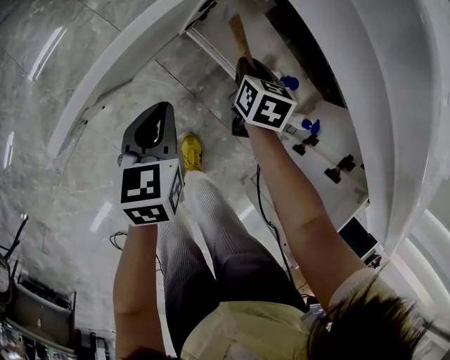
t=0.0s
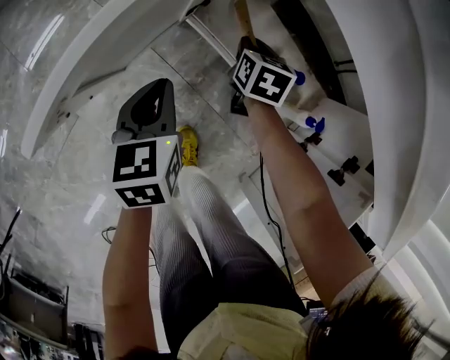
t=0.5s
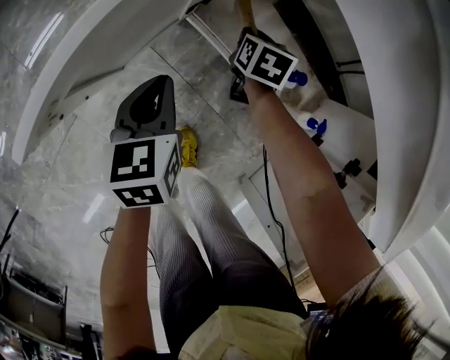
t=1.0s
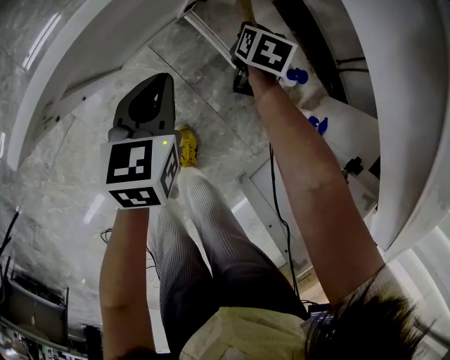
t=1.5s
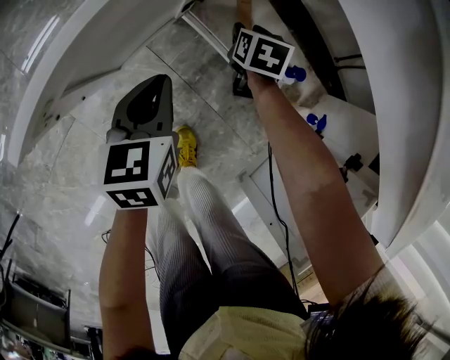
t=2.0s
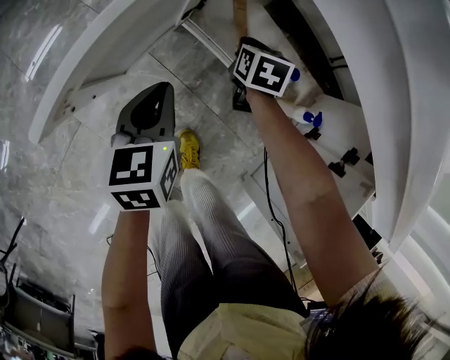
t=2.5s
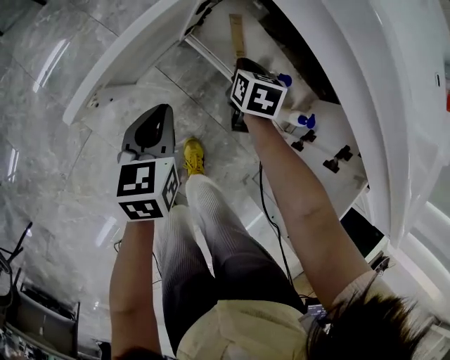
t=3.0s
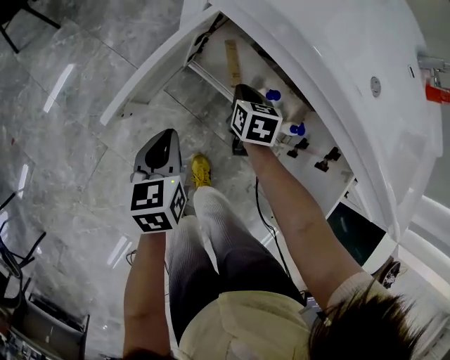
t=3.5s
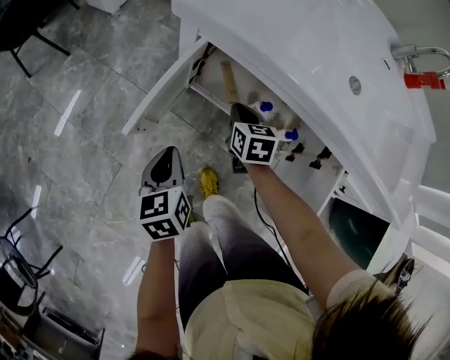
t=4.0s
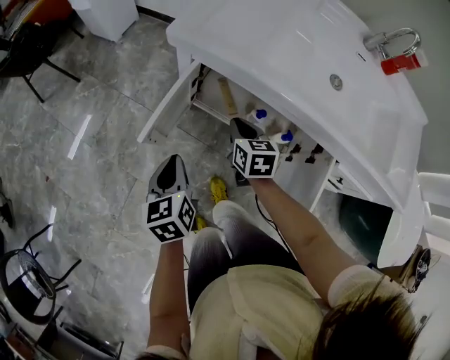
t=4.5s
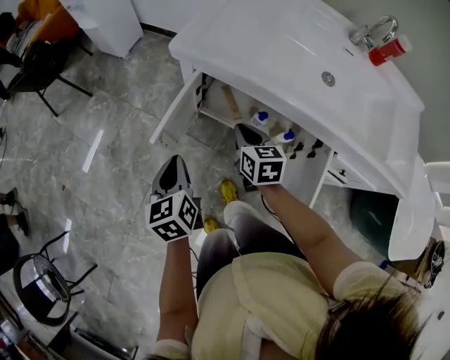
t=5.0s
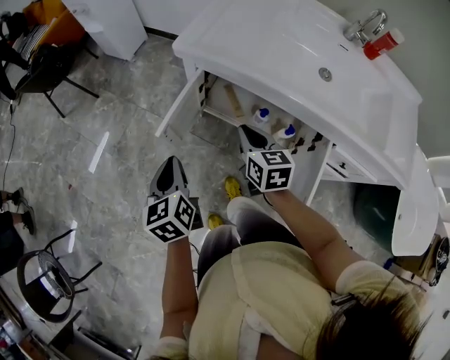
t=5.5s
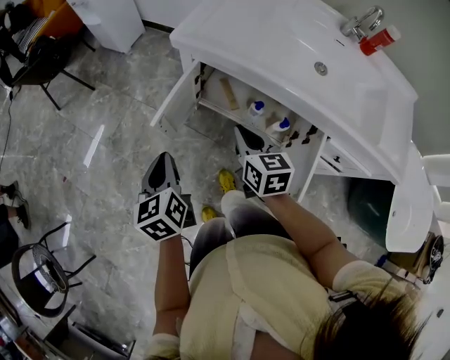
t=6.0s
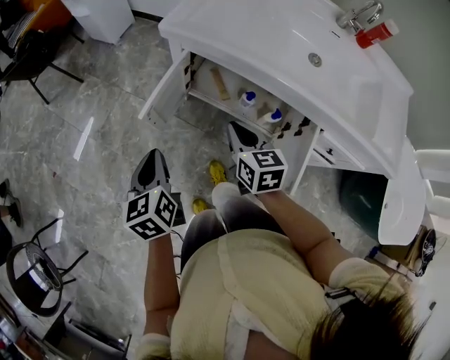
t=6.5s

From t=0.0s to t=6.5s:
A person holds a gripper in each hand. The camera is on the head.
From t=0.0s to t=2.0s: The right gripper is displaced downward and forward by about 10 cm, and opens.
From t=2.0s to t=4.5s: The right gripper shifts about 35 cm upward and backward, and closes its fingers. The left gripper moves upward, about 25 cm.
From t=4.5s to t=6.5s: The grippers both shift upward and backward by approximately 15 cm.

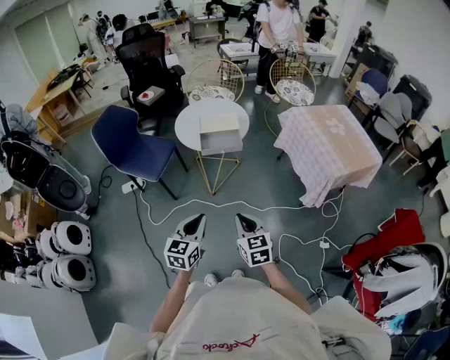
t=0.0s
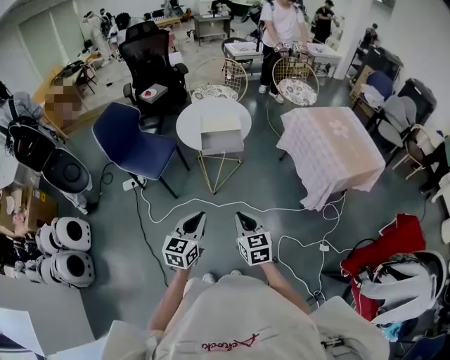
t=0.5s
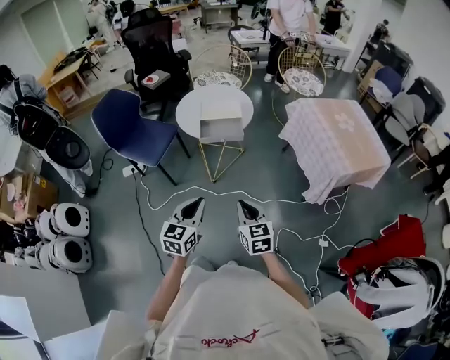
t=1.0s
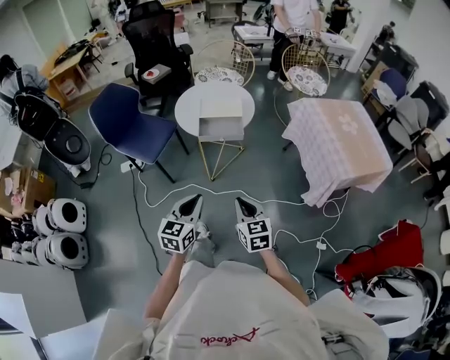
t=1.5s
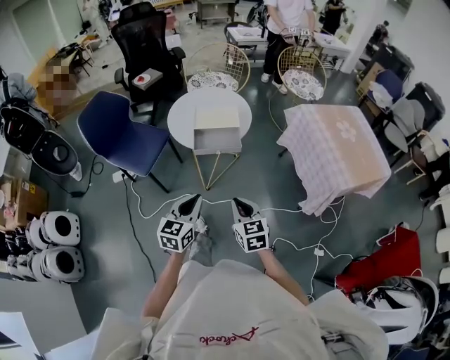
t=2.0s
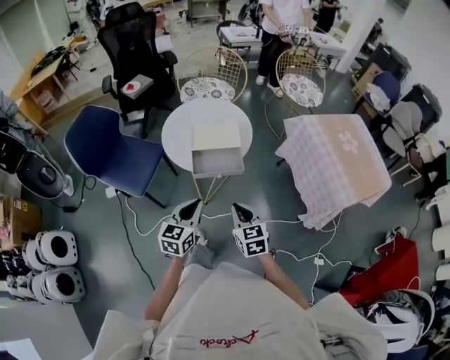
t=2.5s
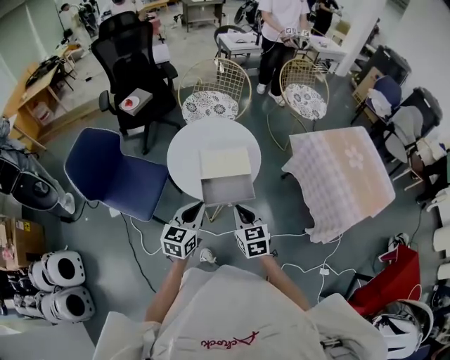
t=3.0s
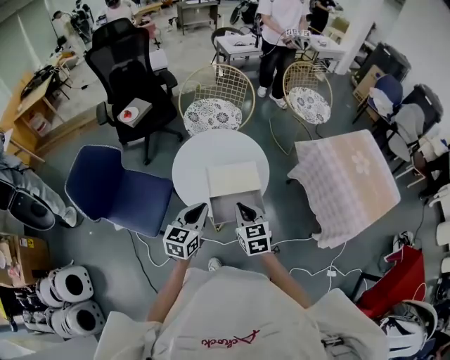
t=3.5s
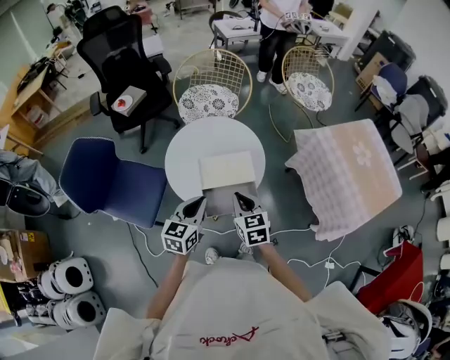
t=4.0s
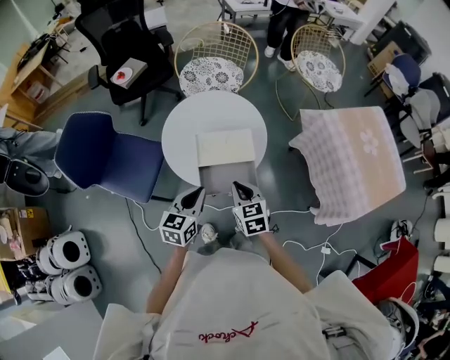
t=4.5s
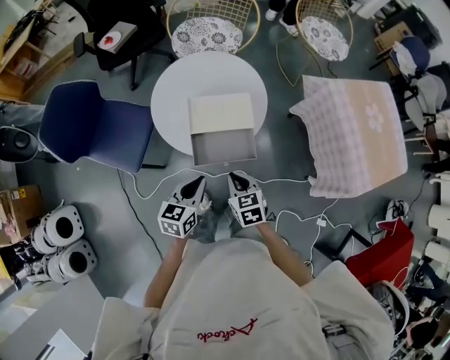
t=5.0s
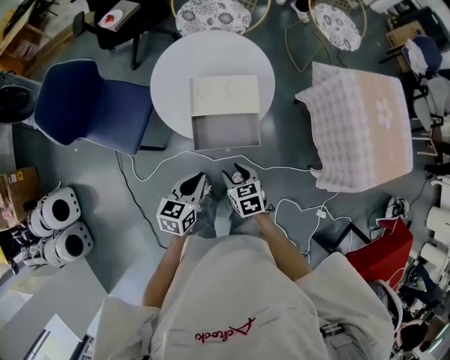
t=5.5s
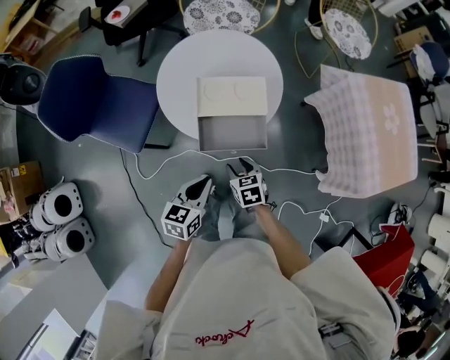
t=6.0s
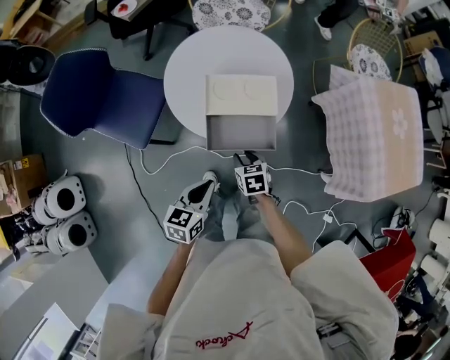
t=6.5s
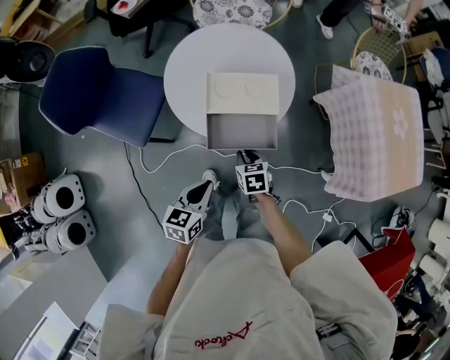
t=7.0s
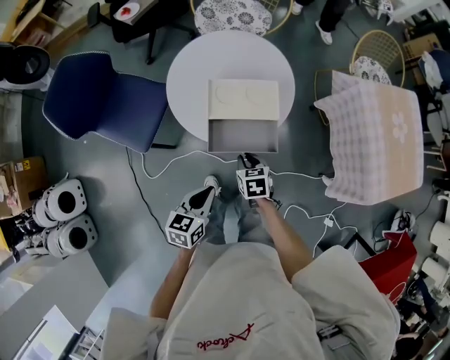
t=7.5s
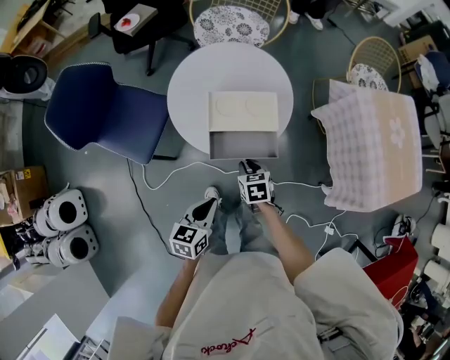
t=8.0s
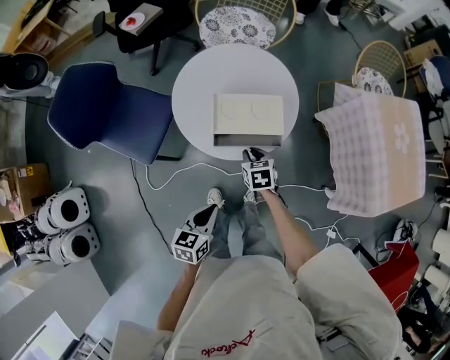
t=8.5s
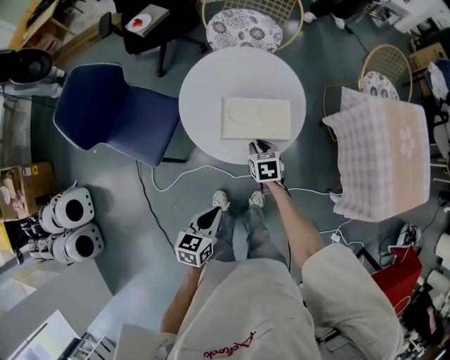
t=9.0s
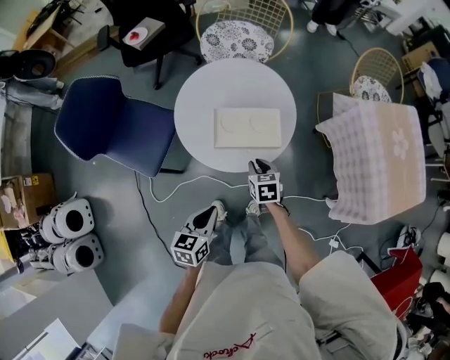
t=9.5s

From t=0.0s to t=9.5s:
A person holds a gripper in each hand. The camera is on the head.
From t=0.0s to t=2.0s: The two grippers go some 15 cm forward.
From t=2.0s to t=4.0s: The grippers both shift forward by some 35 cm.
From t=4.0s to t=5.5s: The right gripper travels downward and backward by approximately 20 cm, changes its angle by approximately 20 degrees, and opens up; the left gripper is displaced backward and downward by some 15 cm.
From t=5.5s to t=7.5s: The right gripper moves forward, some 5 cm, and closes its fingers.
From t=7.5s to t=9.5s: The right gripper goes about 10 cm forward.

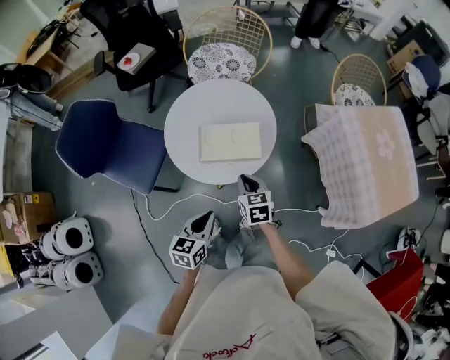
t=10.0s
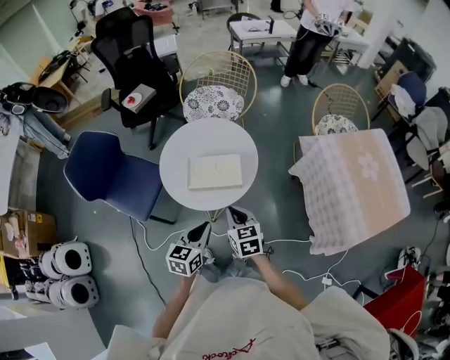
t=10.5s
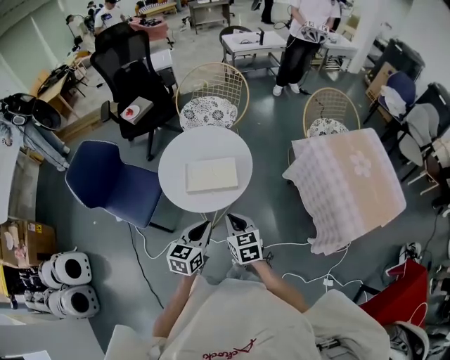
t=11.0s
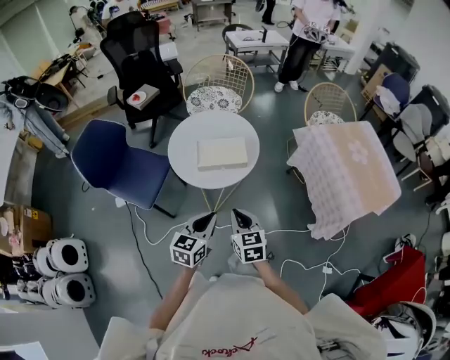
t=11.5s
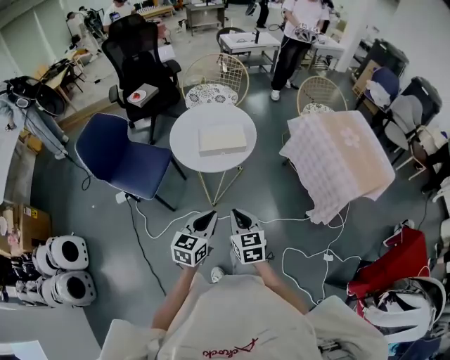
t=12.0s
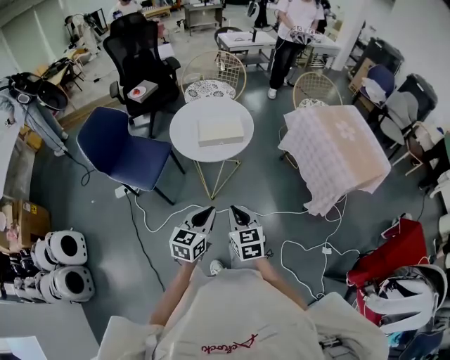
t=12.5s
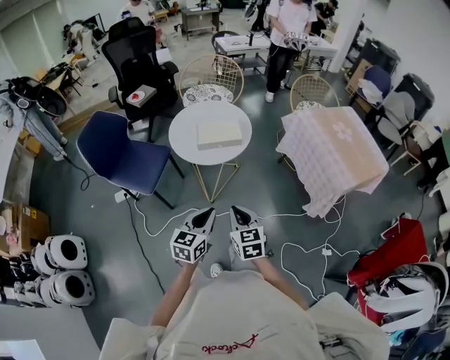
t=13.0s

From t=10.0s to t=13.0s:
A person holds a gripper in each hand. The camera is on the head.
From t=10.0s to t=11.5s: The right gripper heads backward and upward, covering roughly 20 cm, while the left gripper travels upward and backward by some 10 cm.
From t=11.5s to t=13.0s: The two grippers go roughly 15 cm backward.

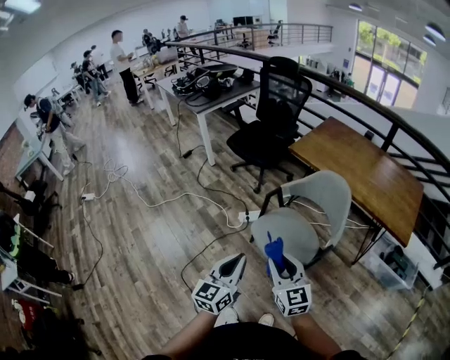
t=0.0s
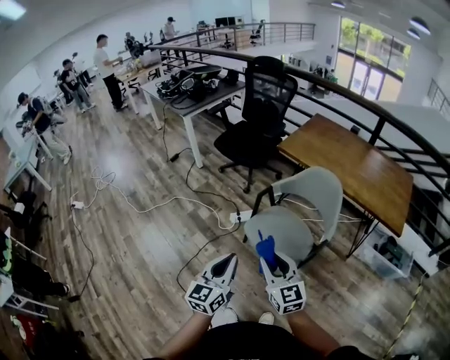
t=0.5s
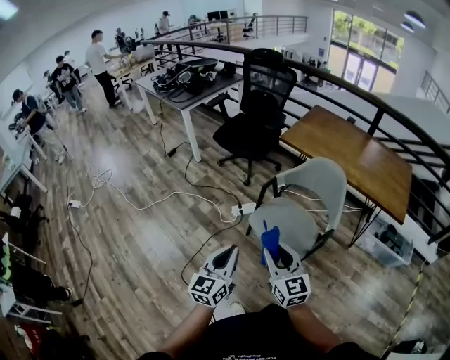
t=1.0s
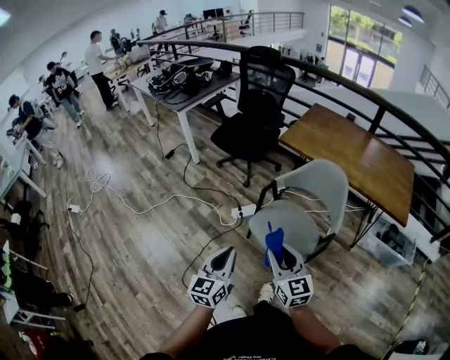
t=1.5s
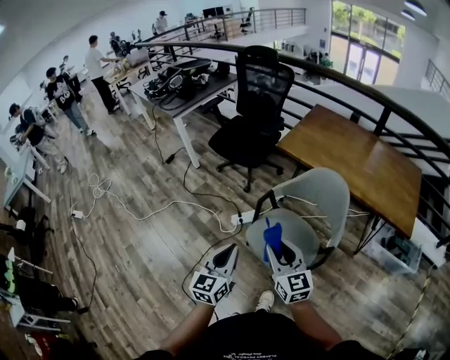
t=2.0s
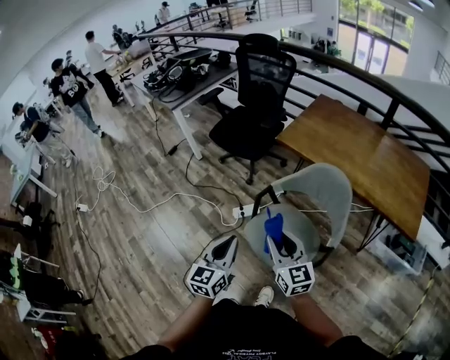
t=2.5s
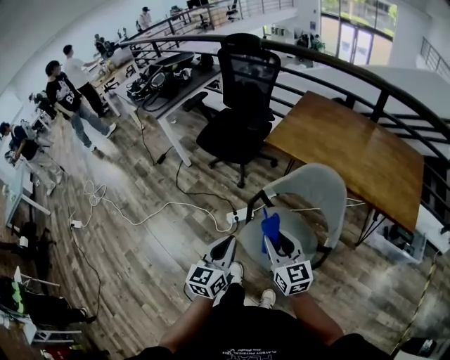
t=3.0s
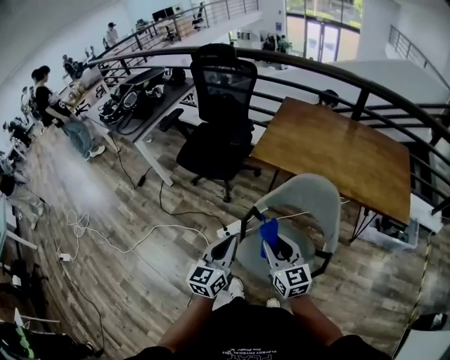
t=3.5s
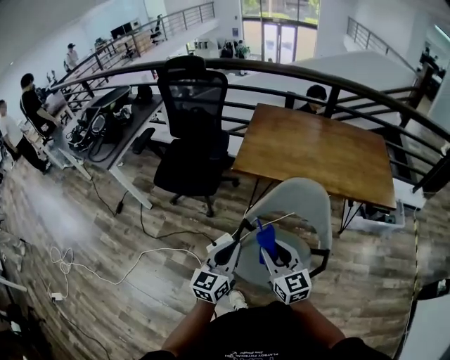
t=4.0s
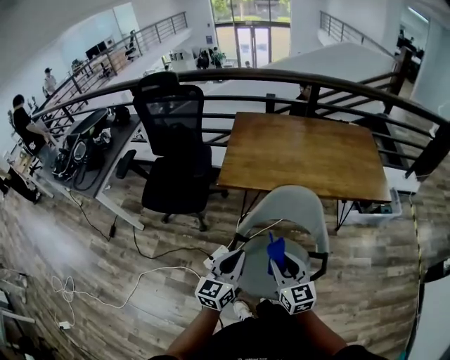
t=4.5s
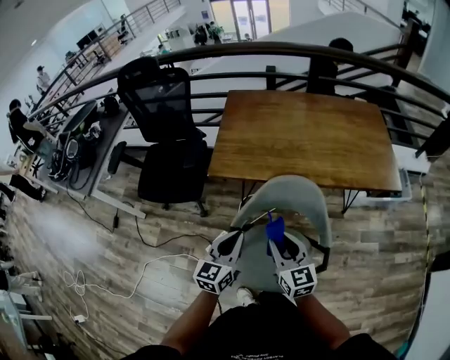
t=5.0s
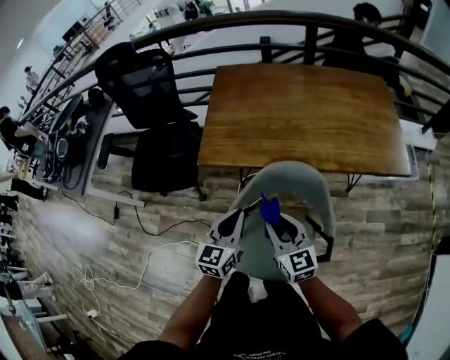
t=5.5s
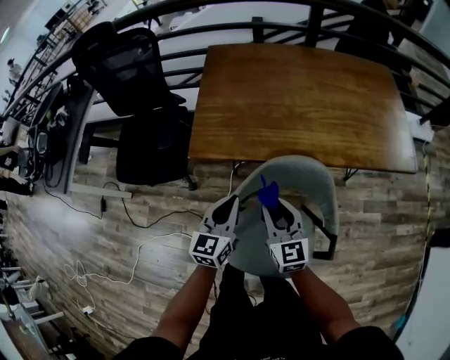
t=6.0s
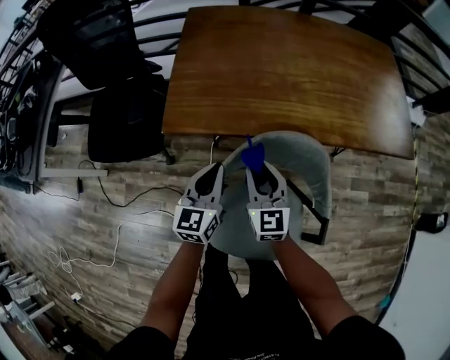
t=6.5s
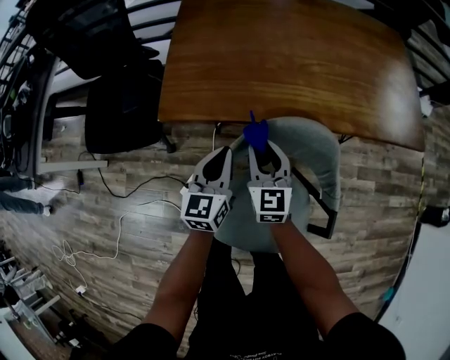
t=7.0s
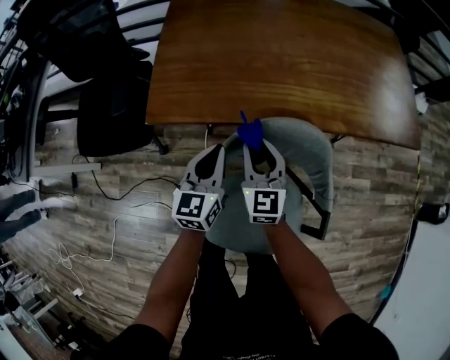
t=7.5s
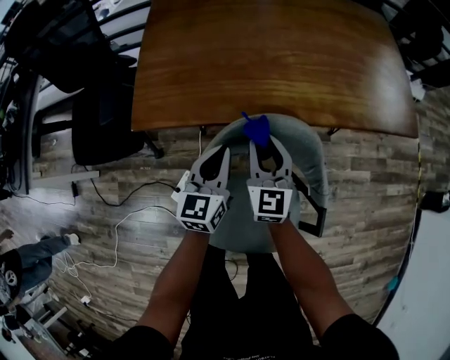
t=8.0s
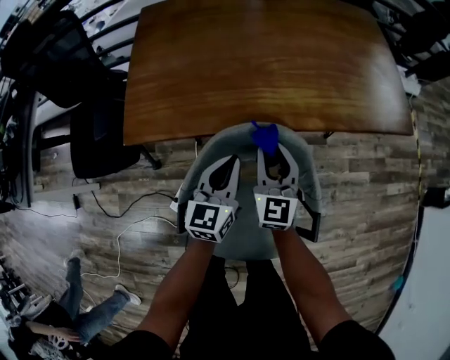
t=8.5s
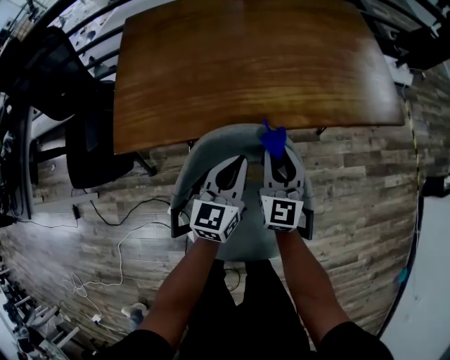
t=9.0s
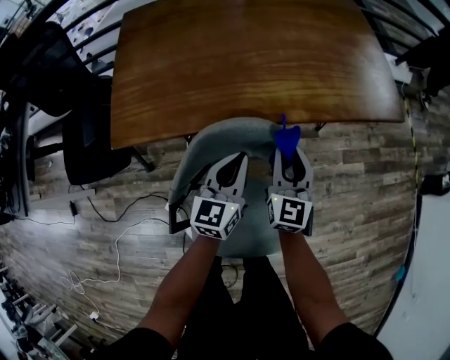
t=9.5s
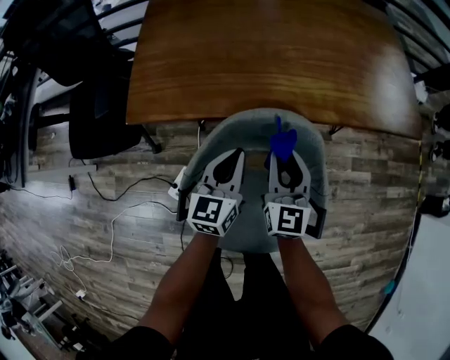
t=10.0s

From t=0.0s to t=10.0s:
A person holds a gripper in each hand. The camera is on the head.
From t=0.0s to t=2.0s: The two grippers go roughly 15 cm forward.
From t=2.0s to t=4.0s: Both grippers travel together forward, approximately 20 cm. The left gripper rotates approximately 30 degrees.
From t=4.0s to t=6.0s: Both grippers travel together forward and downward, about 25 cm.
From t=6.0s to t=8.0s: The right gripper shifts about 15 cm forward, downward and to the right. The left gripper moves downward, forward and to the right, about 15 cm.
From t=8.0s to t=10.0s: The right gripper goes some 5 cm to the right.
